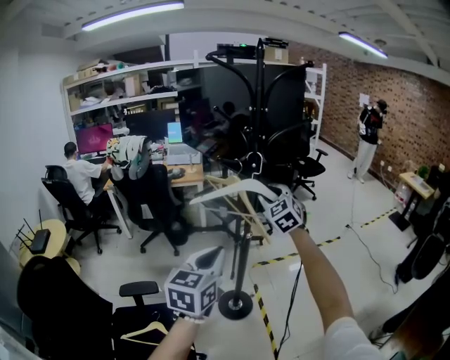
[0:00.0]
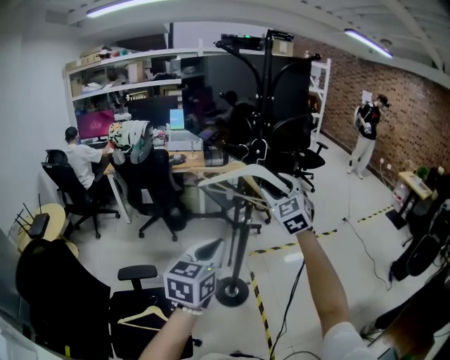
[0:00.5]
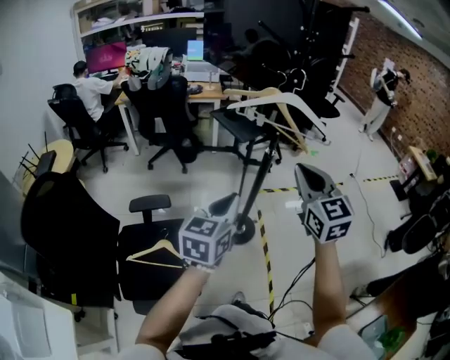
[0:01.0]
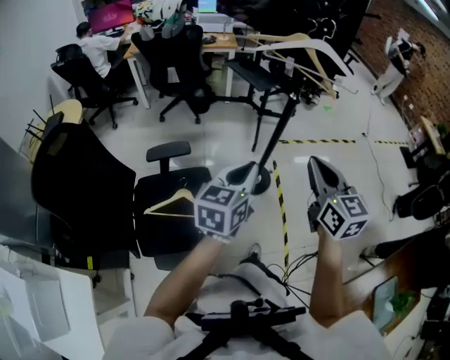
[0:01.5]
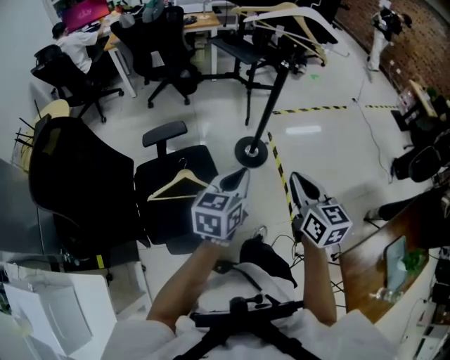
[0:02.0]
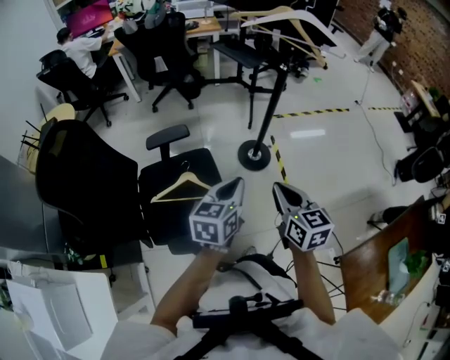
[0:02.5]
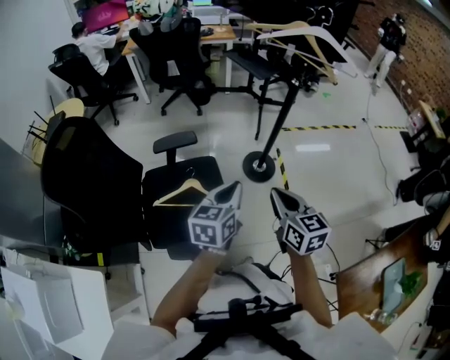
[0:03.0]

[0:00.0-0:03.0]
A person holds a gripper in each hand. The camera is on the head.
0:00.0 to 0:01.5: The right gripper shifts approximately 35 cm backward, rotates some 40 degrees, and closes. Meanwhile the left gripper is displaced backward, downward and to the left by about 20 cm.
0:01.5 to 0:03.0: The right gripper heads downward, backward and to the left, covering about 20 cm. Meanwhile the left gripper moves downward and backward, about 10 cm.

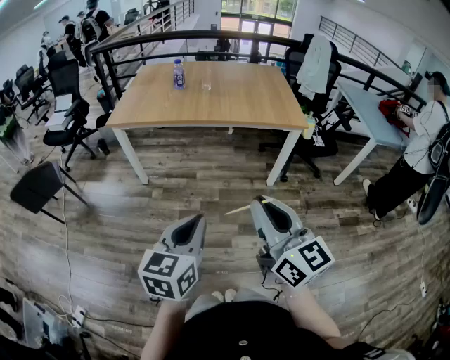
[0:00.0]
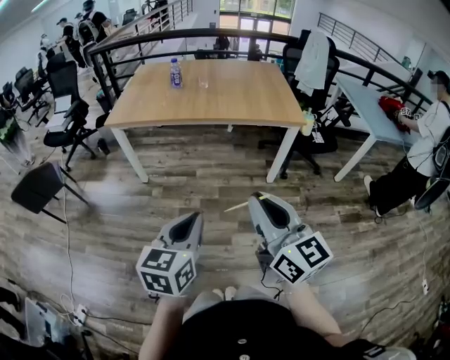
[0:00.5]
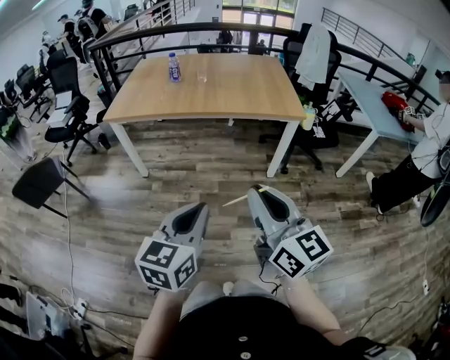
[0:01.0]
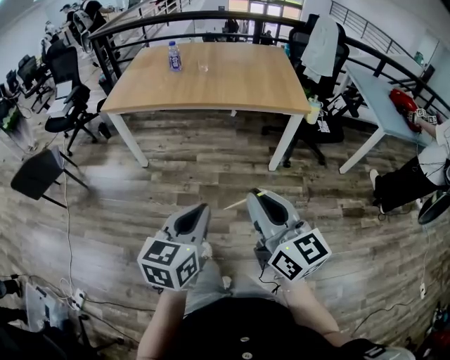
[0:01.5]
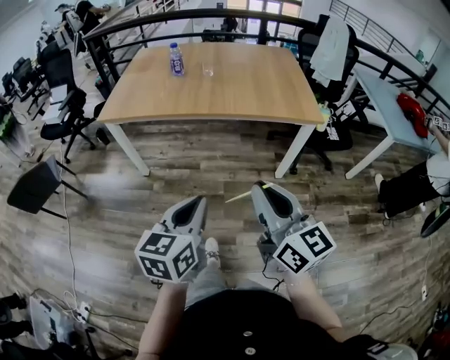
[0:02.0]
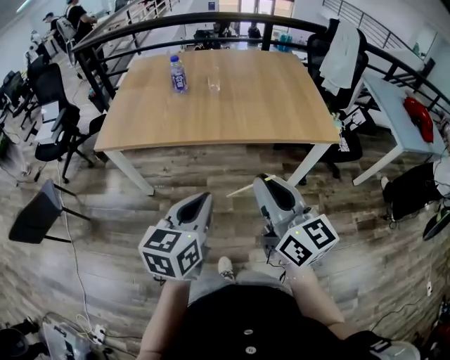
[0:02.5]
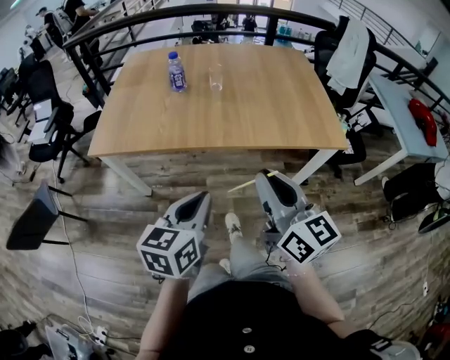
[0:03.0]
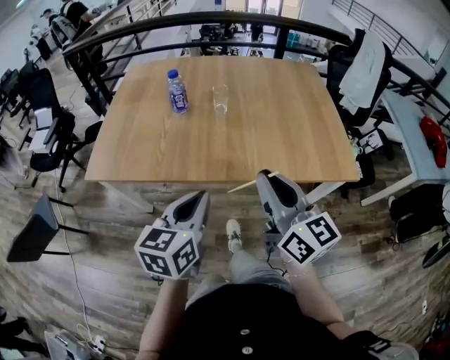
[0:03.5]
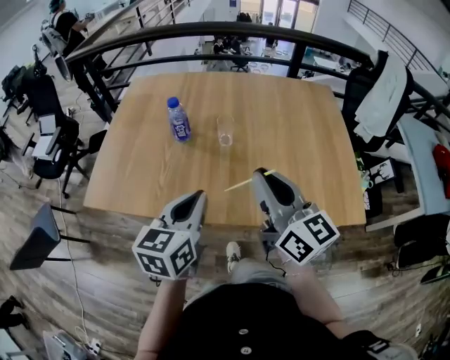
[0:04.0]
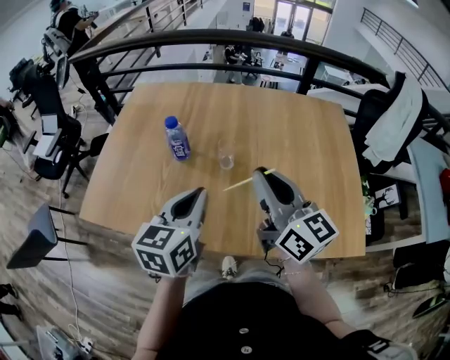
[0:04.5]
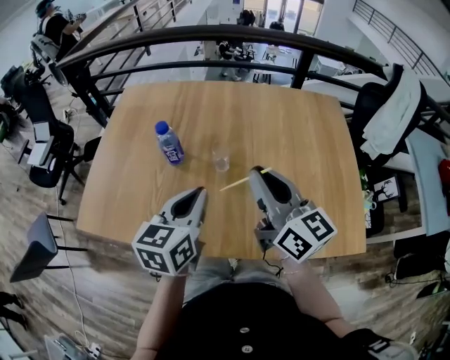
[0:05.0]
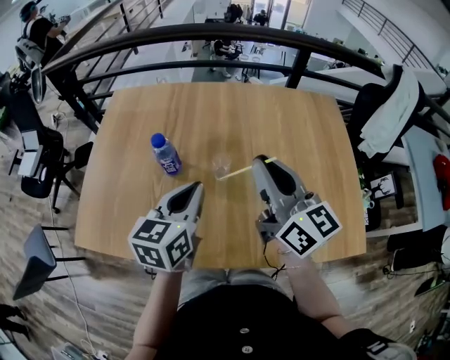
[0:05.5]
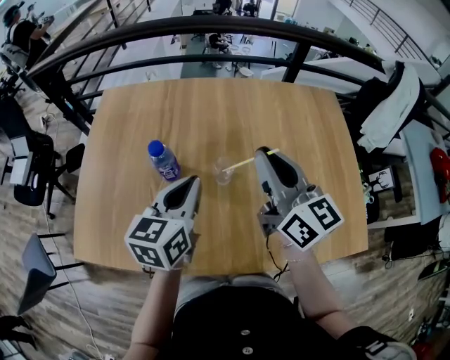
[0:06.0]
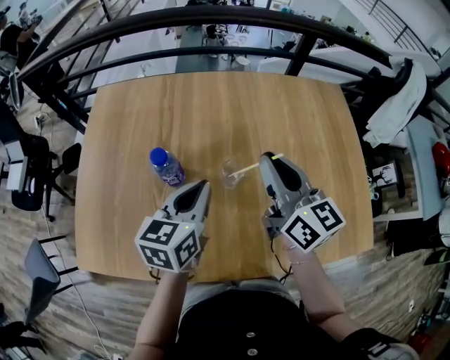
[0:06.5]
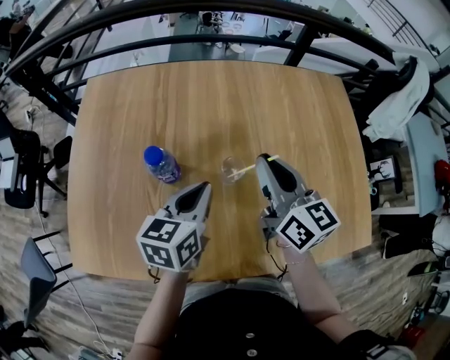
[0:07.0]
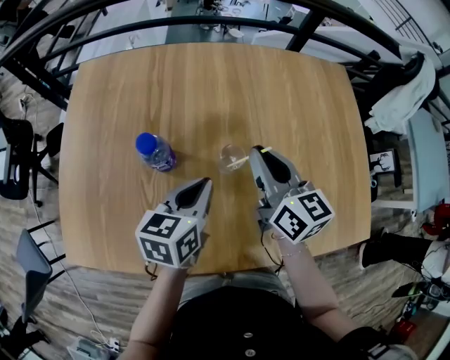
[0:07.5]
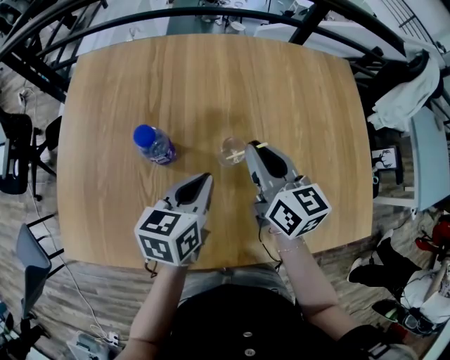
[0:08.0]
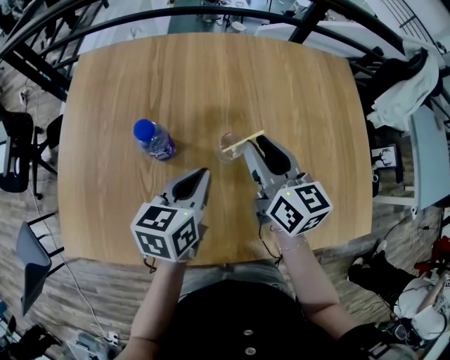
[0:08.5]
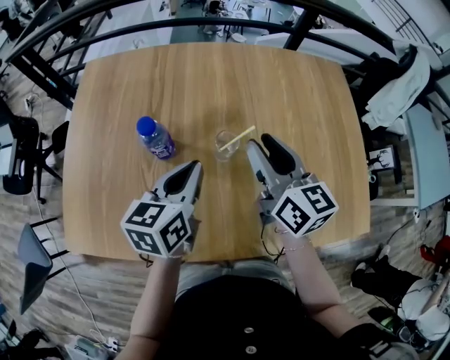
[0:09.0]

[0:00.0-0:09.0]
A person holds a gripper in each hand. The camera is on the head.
0:00.0 to 0:02.0: Both grippers move forward, about 15 cm.
0:02.0 to 0:04.5: The two grippers travel together, forward, about 70 cm.
0:04.5 to 0:07.0: The two grippers go some 20 cm forward and downward.
0:07.0 to 0:09.0: The right gripper opens.

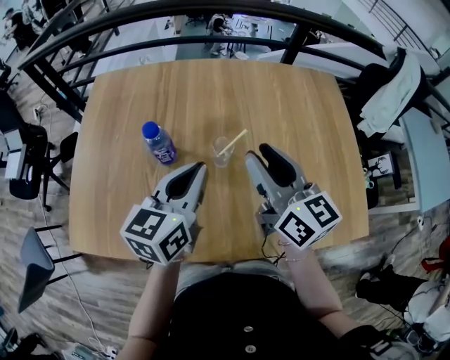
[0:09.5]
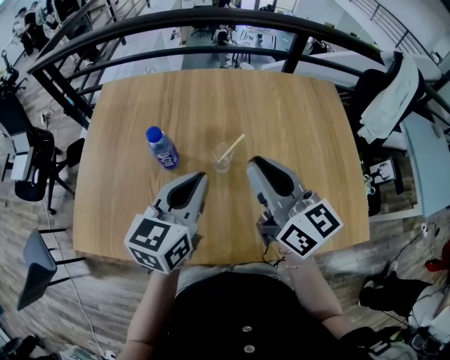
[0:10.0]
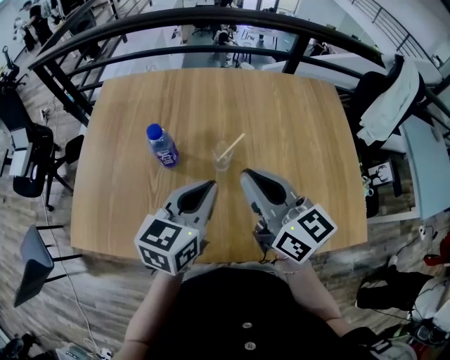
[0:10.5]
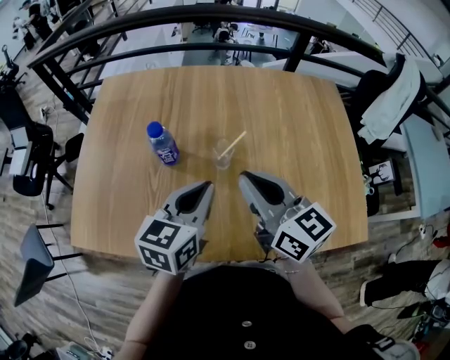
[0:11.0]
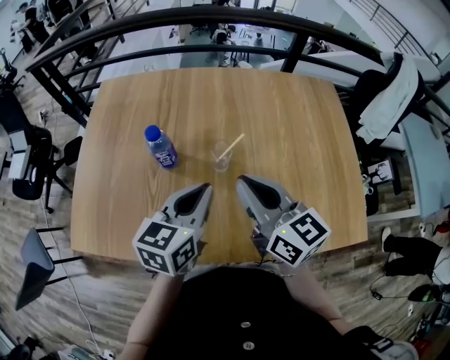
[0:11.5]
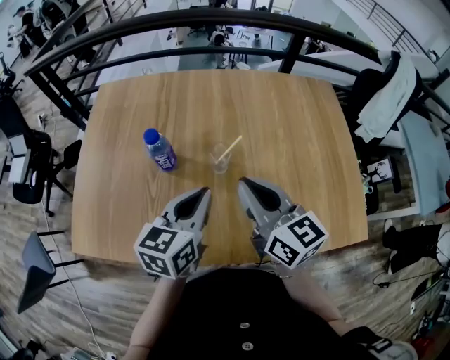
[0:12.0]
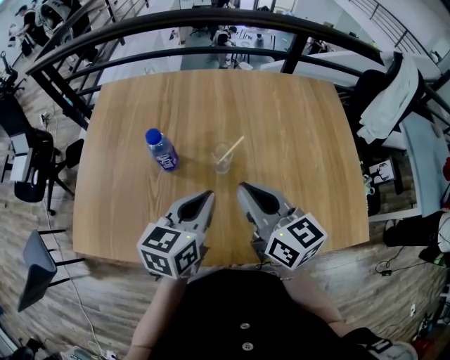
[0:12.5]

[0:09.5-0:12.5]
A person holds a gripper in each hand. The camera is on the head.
0:09.5 to 0:11.0: The right gripper heads backward, covering some 5 cm, and closes up, while the left gripper ends up roughly 5 cm from where it was.
0:11.0 to 0:12.5: The grippers make only small movements.

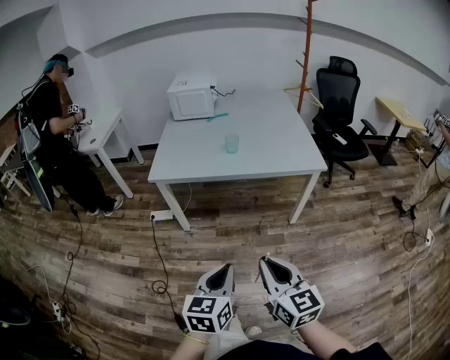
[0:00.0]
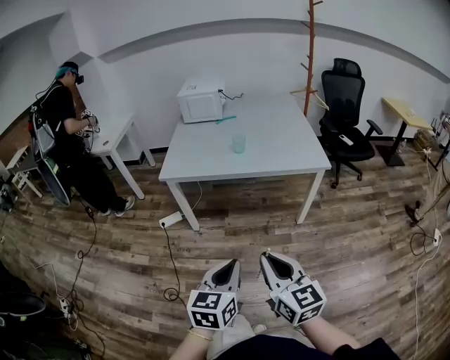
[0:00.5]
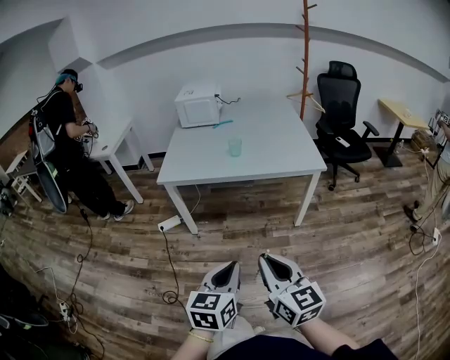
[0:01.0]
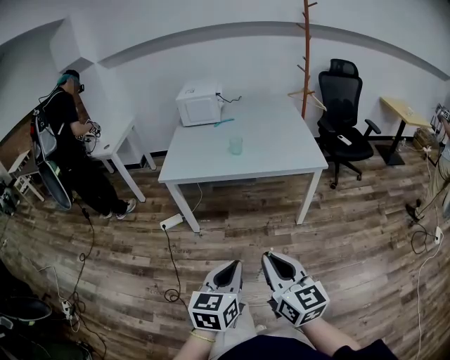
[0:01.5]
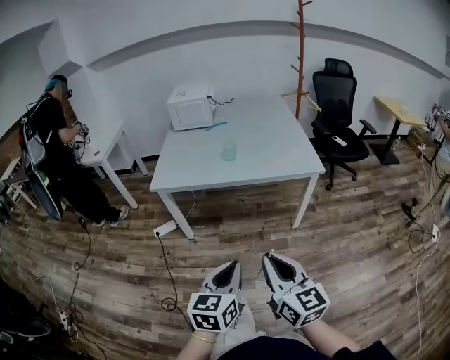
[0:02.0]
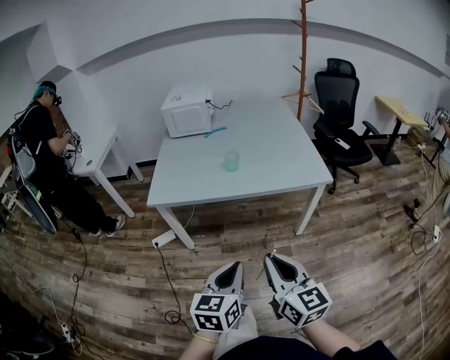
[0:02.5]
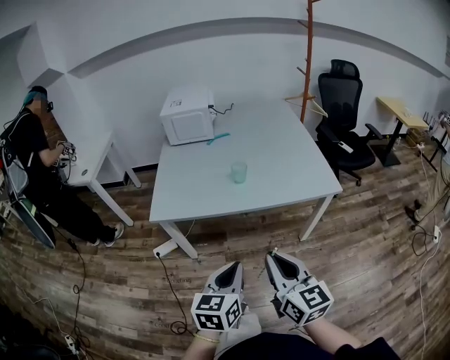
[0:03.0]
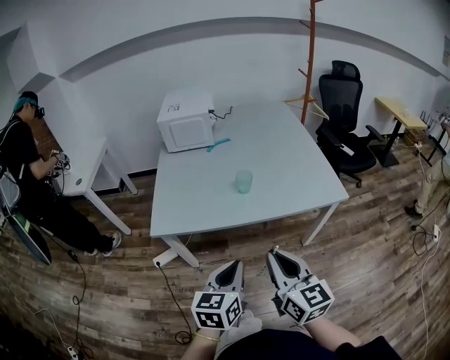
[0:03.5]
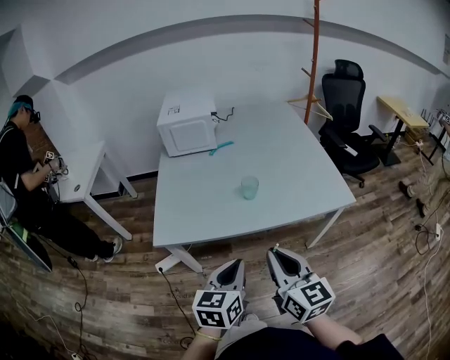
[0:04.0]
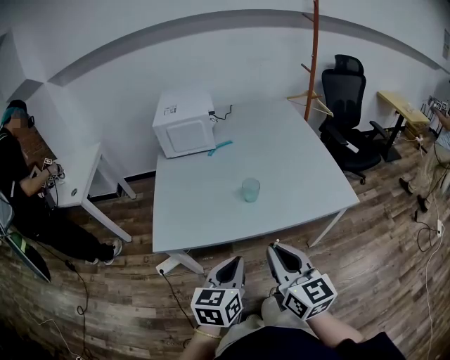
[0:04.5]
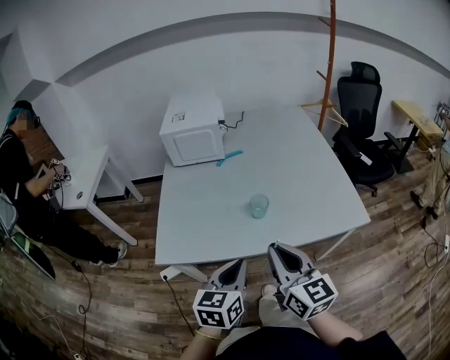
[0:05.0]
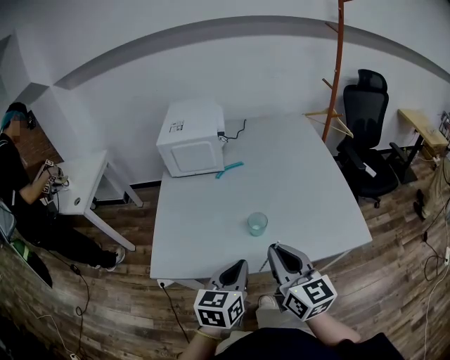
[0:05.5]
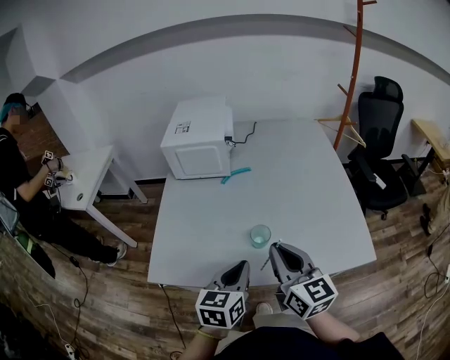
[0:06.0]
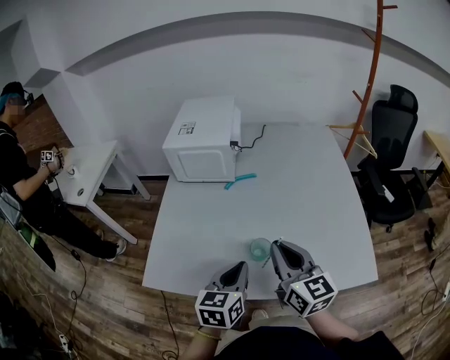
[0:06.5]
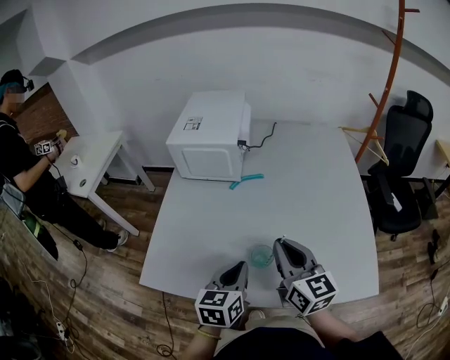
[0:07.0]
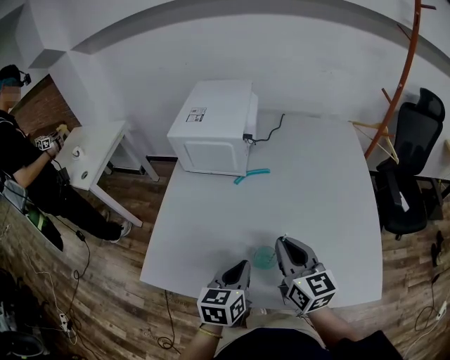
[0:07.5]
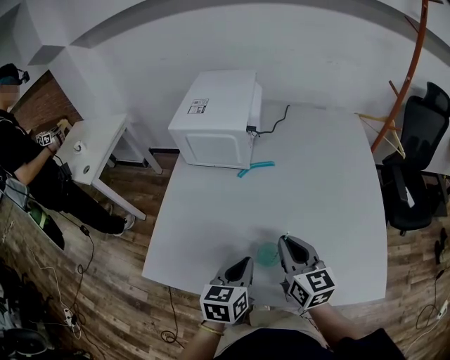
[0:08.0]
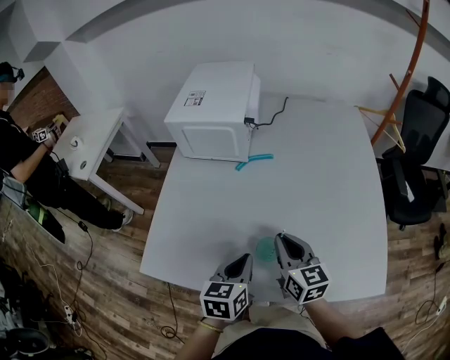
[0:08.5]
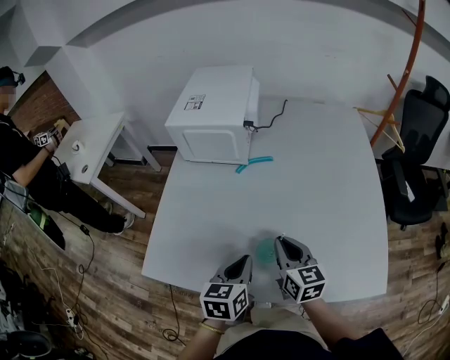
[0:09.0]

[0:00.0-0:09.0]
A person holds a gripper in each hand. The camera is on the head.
0:02.0 to 0:04.5: The grippers both shift forward by some 35 cm.
0:04.5 to 0:07.0: The grippers both shift forward by some 30 cm.
0:07.0 to 0:09.0: The right gripper heads downward, covering approximately 10 cm.

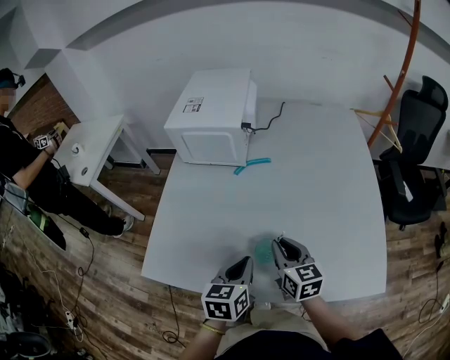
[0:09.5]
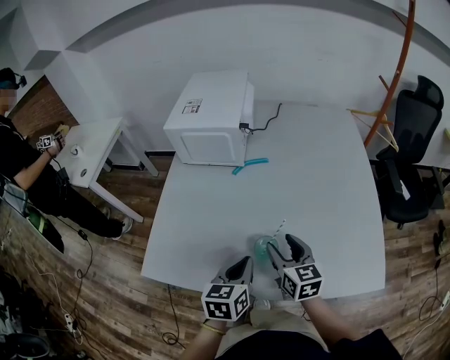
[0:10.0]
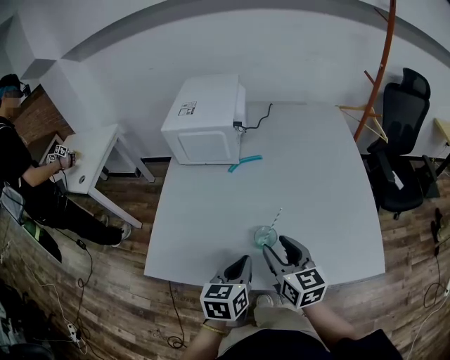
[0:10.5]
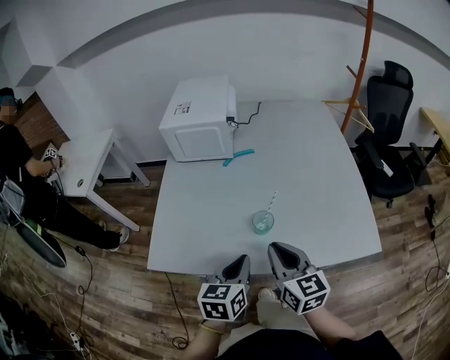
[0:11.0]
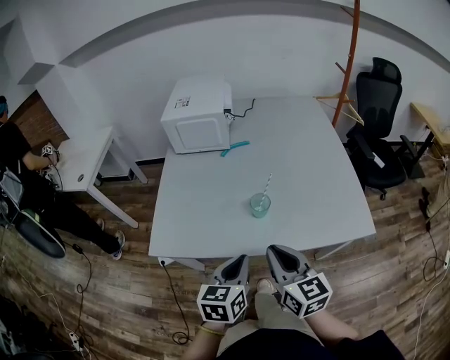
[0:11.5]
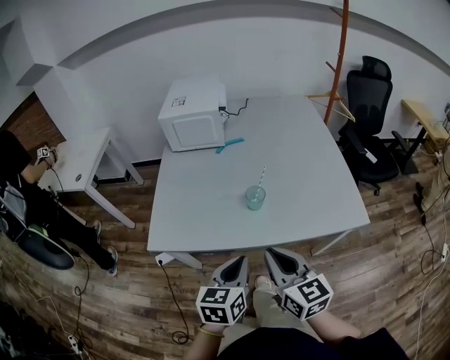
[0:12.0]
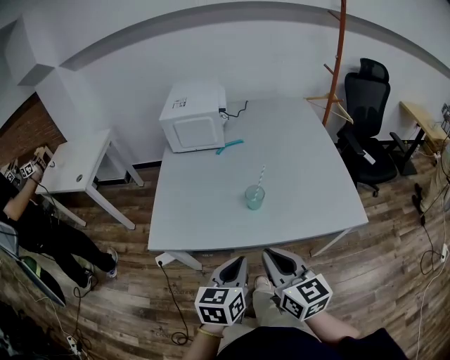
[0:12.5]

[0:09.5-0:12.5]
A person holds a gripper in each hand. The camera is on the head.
0:09.5 to 0:11.0: The left gripper travels backward by roughly 10 cm. Meanwhile the right gripper travels backward and upward by roughly 15 cm, and opens, then closes once more.
0:11.0 to 0:12.5: The grippers both shift backward by roughly 15 cm.
